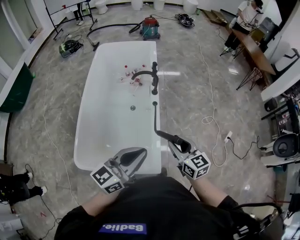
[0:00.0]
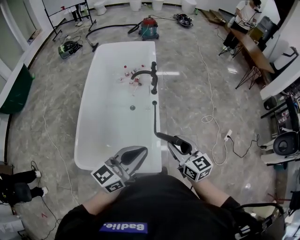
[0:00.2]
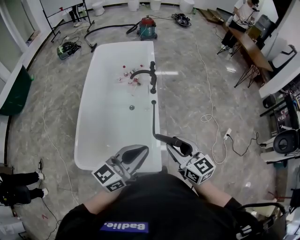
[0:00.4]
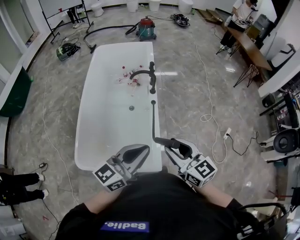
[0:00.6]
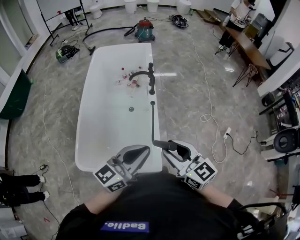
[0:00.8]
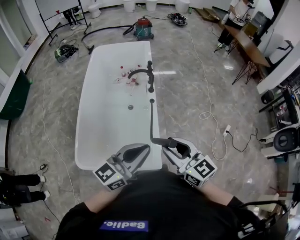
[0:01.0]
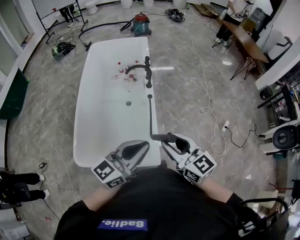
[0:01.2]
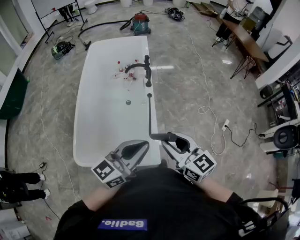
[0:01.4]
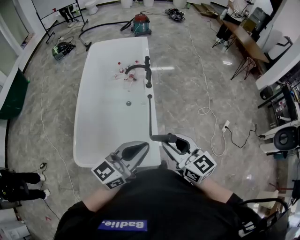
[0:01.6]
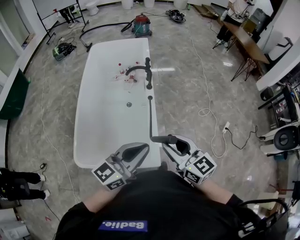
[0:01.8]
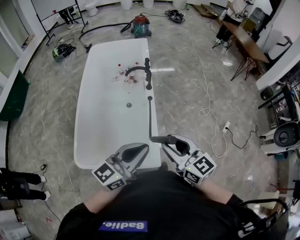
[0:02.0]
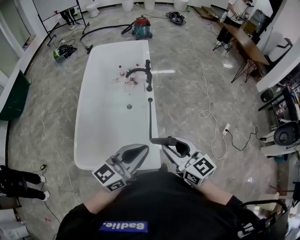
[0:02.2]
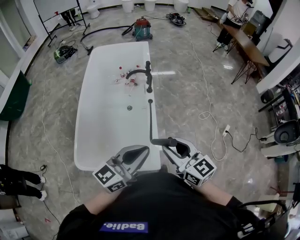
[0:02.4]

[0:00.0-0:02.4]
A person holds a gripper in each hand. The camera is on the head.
0:00.0 to 0:01.2: The right gripper is displaced upward and backward by some 10 cm.
0:01.2 to 0:02.4: Neither gripper changes place.

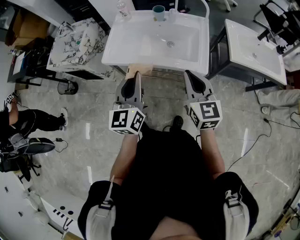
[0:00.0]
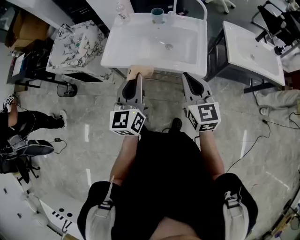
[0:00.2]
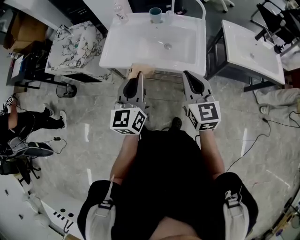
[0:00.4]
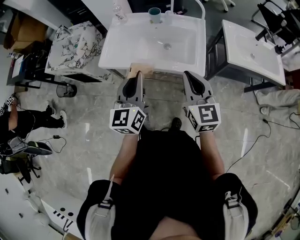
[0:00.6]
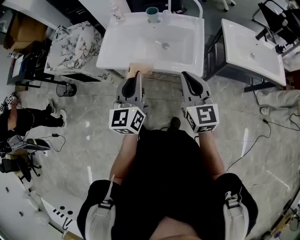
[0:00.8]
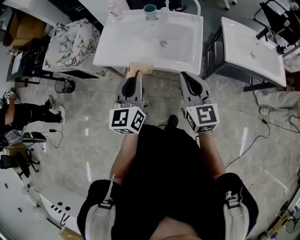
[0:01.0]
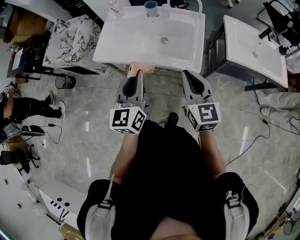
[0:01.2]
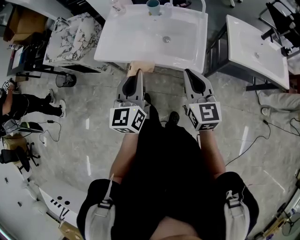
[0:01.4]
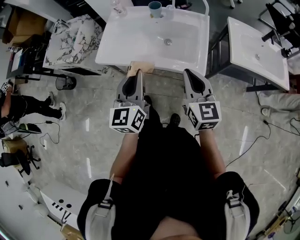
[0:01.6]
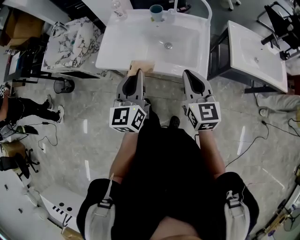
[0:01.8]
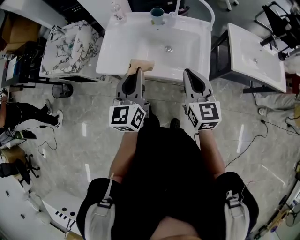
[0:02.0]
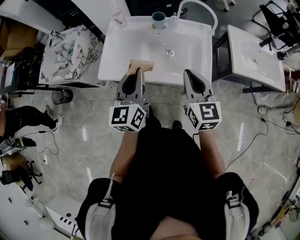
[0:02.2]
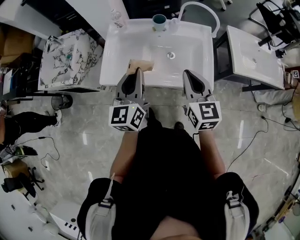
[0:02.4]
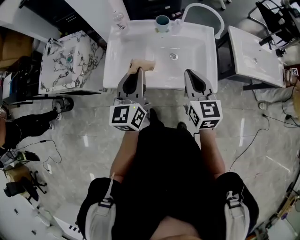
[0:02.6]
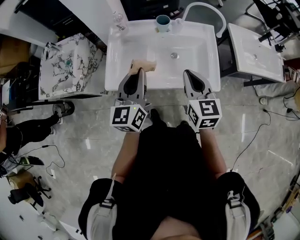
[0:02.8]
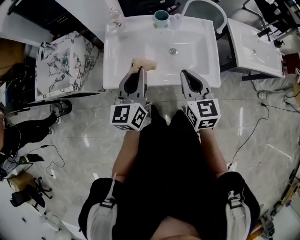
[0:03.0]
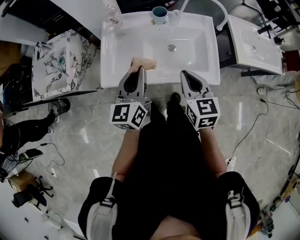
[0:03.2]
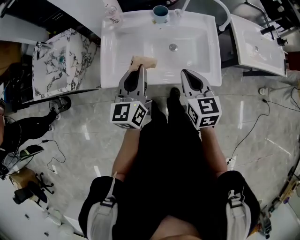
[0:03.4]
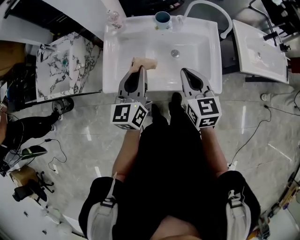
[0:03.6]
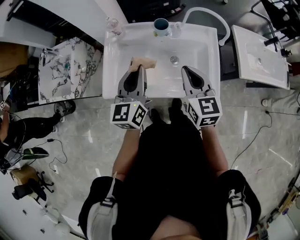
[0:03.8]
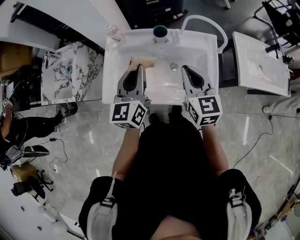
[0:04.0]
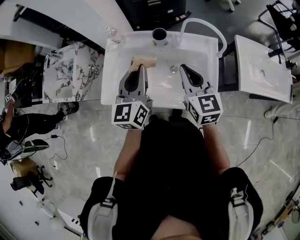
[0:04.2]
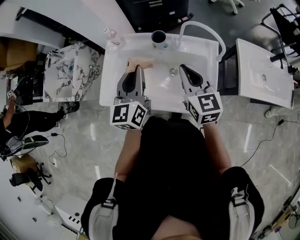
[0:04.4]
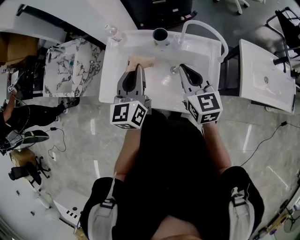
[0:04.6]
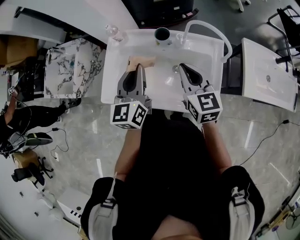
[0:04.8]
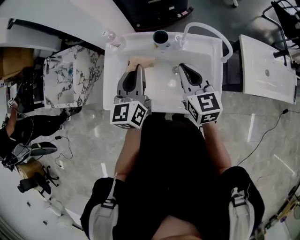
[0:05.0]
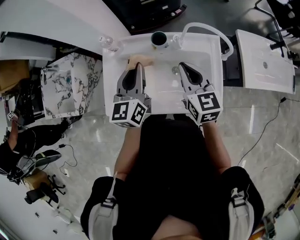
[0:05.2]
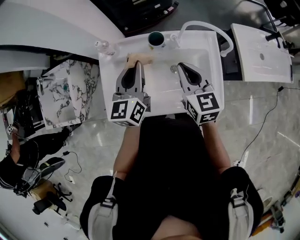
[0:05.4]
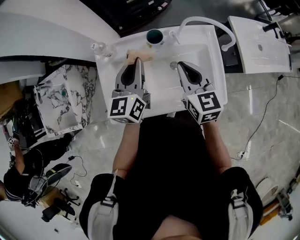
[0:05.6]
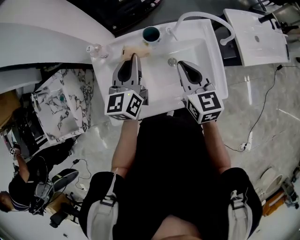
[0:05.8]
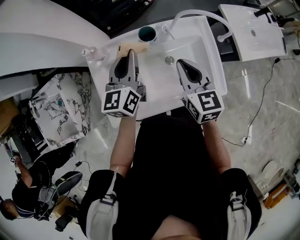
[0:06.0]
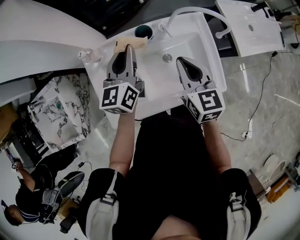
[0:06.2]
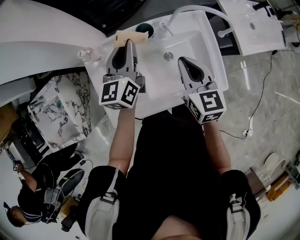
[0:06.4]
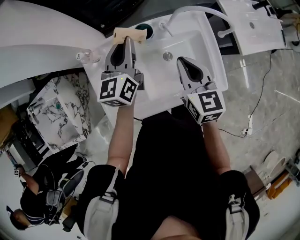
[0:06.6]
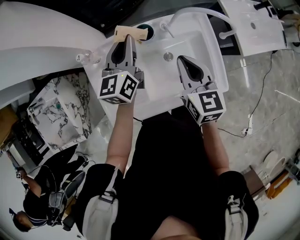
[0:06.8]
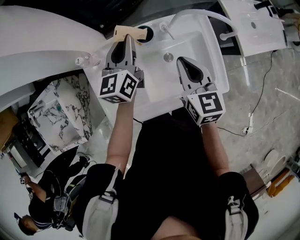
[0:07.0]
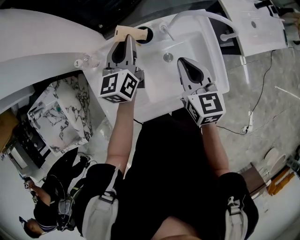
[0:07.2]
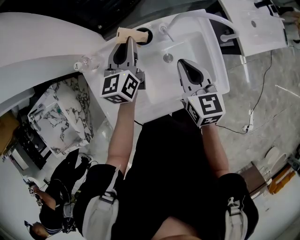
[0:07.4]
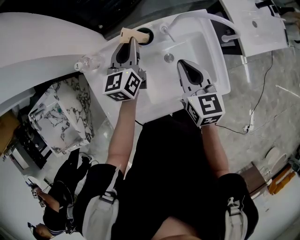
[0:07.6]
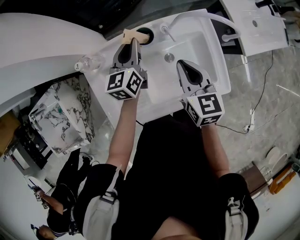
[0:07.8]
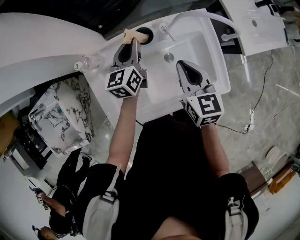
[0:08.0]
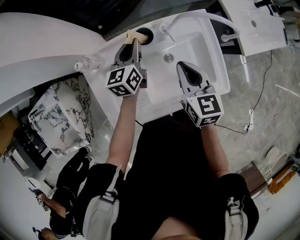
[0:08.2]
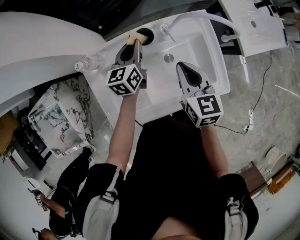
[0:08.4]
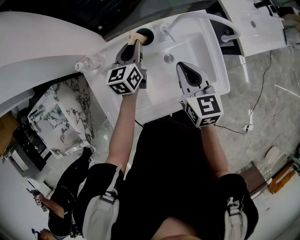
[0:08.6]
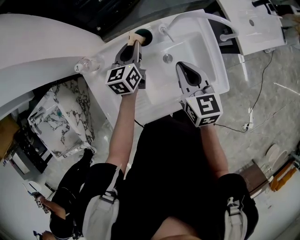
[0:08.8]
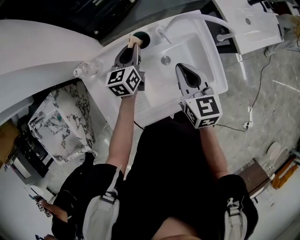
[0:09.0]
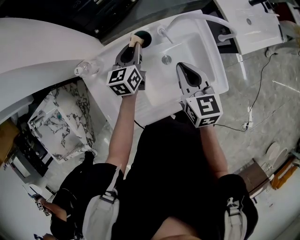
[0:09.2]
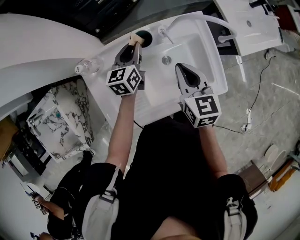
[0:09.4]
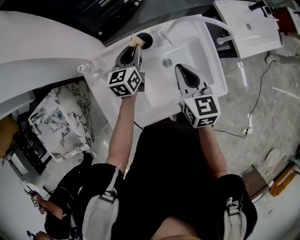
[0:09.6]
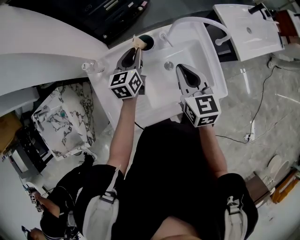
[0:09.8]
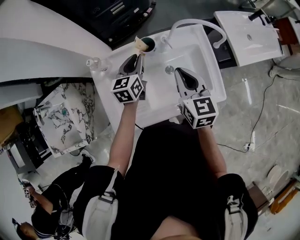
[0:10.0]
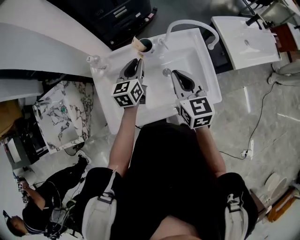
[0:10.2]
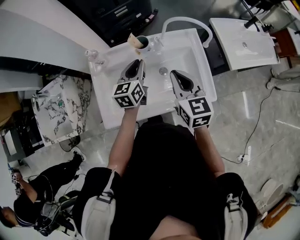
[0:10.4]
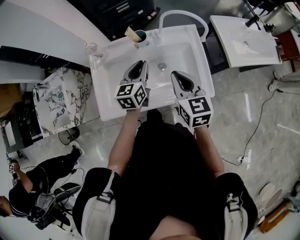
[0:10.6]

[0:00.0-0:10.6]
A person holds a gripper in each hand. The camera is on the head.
0:00.0 to 0:01.6: The right gripper ends up roughly 5 cm from where it was. The left gripper ends up roughly 5 cm from where it was.
0:01.6 to 0:03.0: The left gripper is displaced forward and to the left by about 20 cm. The right gripper is displaced to the left and forward by some 20 cm.
0:03.0 to 0:04.6: Both grippers move forward and to the right, roughly 15 cm.
0:04.6 to 0:06.0: The right gripper moves about 5 cm, and turns by about 30 degrees; the left gripper goes approximately 15 cm forward, and swivels approximately 30 degrees.
0:06.0 to 0:07.6: The left gripper moves forward and downward, some 10 cm.
0:07.6 to 0:09.0: The left gripper heads downward, covering roughly 5 cm.
0:09.0 to 0:10.6: The right gripper travels backward by about 10 cm; the left gripper travels backward and upward by roughly 15 cm.

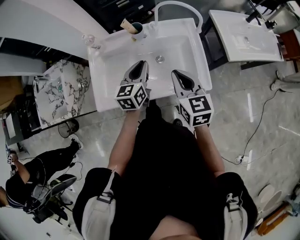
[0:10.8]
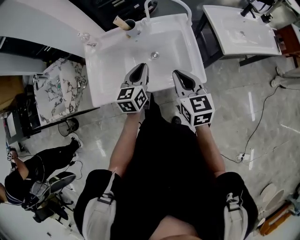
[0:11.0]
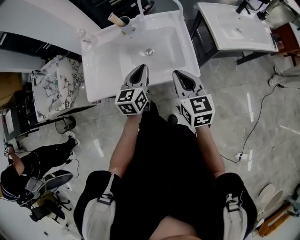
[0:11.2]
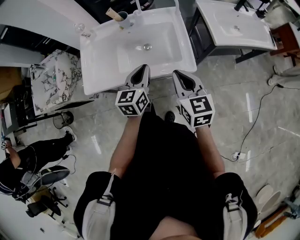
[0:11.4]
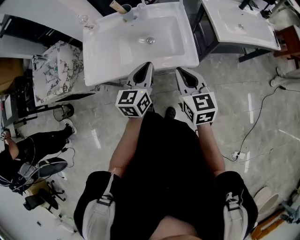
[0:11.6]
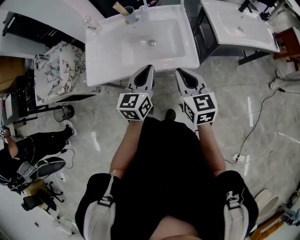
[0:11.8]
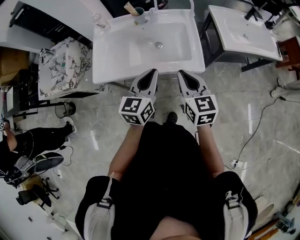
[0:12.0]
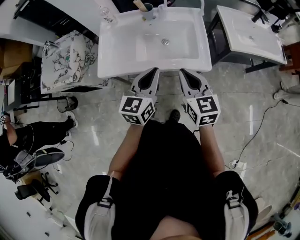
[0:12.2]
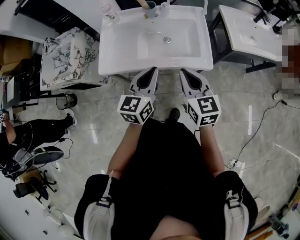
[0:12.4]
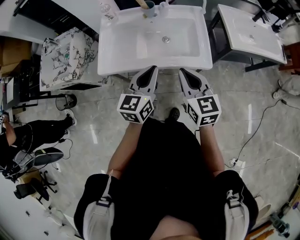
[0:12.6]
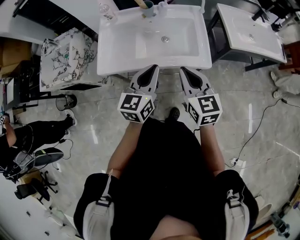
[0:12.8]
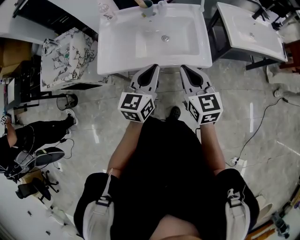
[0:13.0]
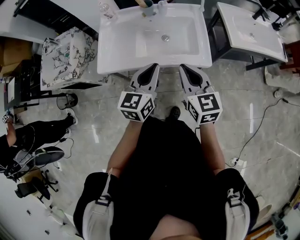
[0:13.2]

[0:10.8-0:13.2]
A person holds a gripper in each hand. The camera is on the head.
0:10.8 to 0:12.0: The right gripper moves backward and to the right, some 15 cm, while the left gripper shifts roughly 20 cm backward.
0:12.0 to 0:13.2: The grippers make only small movements.

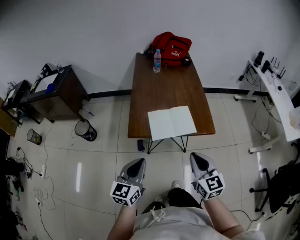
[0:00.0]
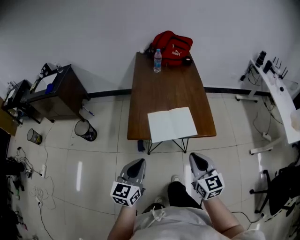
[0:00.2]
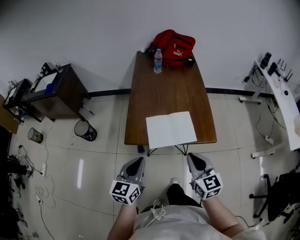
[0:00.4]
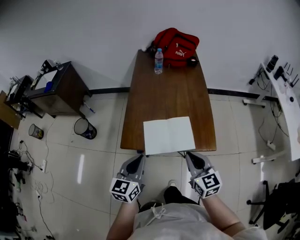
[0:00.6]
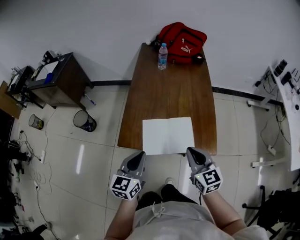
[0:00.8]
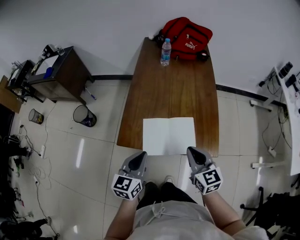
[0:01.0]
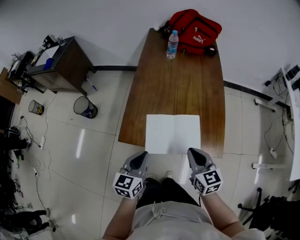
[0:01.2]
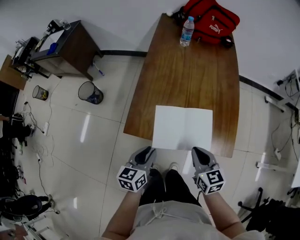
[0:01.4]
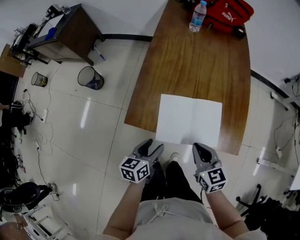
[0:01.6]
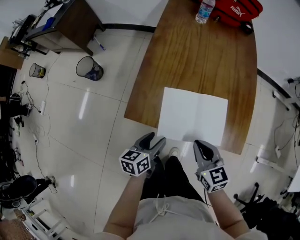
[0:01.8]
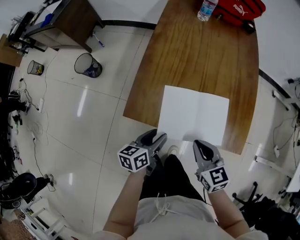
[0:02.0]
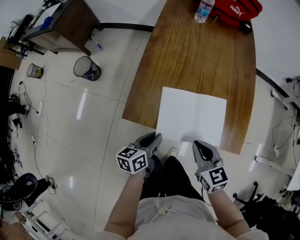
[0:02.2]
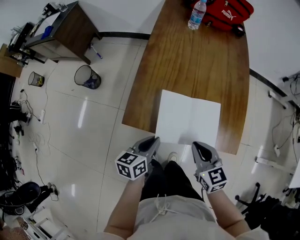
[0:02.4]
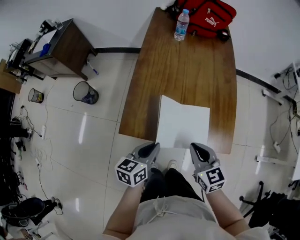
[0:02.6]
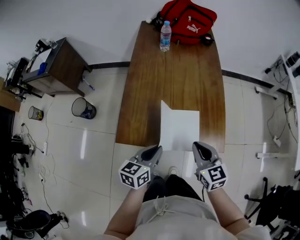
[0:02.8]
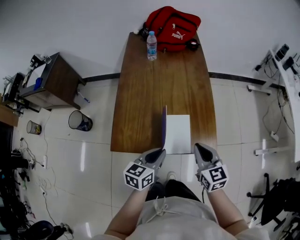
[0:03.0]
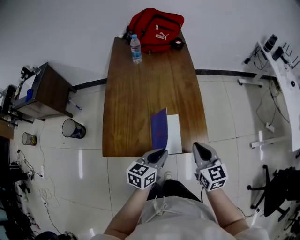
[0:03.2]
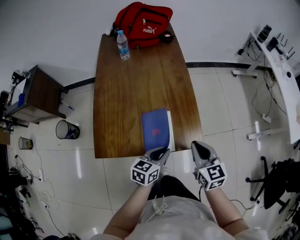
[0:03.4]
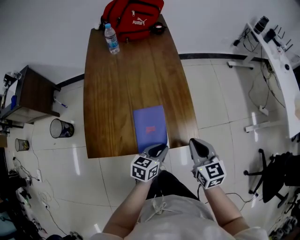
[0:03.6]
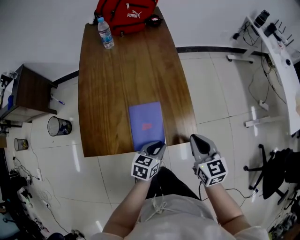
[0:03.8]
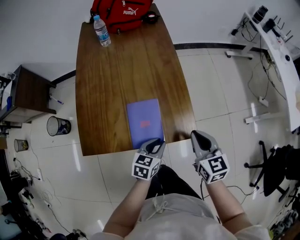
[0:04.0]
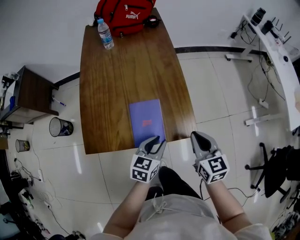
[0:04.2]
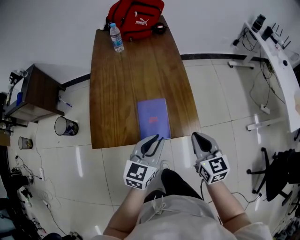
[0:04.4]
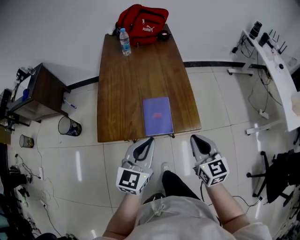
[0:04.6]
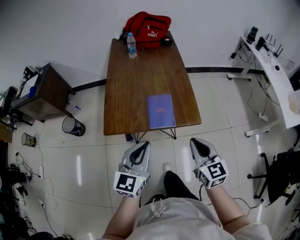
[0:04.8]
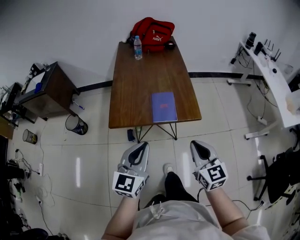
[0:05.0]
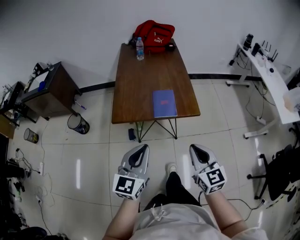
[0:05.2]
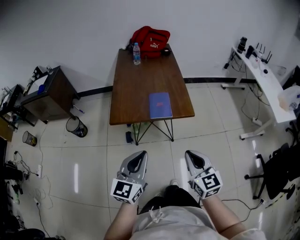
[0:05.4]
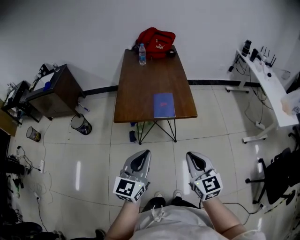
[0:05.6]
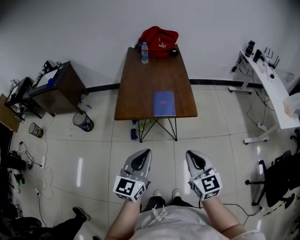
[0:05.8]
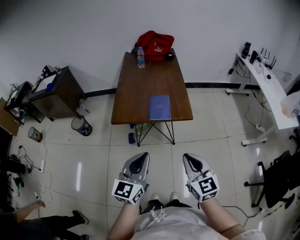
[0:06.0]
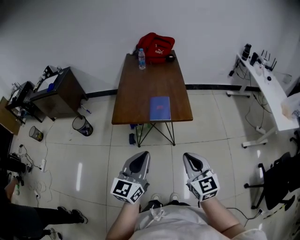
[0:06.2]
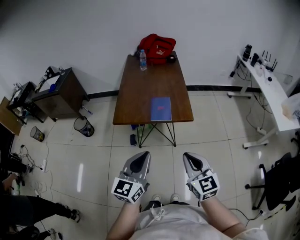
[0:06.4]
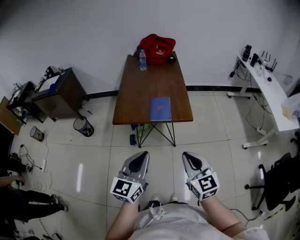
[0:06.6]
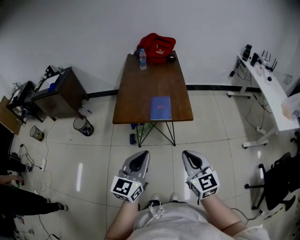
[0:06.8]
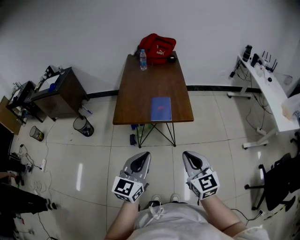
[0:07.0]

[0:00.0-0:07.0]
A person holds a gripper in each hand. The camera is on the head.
0:00.0 to 0:01.4: Both grippers travel together forward and downward, approximately 25 cm. The right gripper rotates some 20 degrees. The left gripper changes its angle by about 30 degrees.
0:01.4 to 0:02.8: The left gripper moves to the right, about 5 cm, travels downward and back again, roughly 10 cm each way, and opens and closes again. Meanwhile the right gripper ends up approximately 5 cm from where it was.
0:02.8 to 0:04.2: Both grippers travel together to the right, approximately 15 cm. The left gripper turns by approximately 20 degrees.
0:04.2 to 0:05.6: The left gripper moves backward and upward, about 40 cm, swivels about 30 degrees, and closes up. The right gripper goes about 35 cm backward.
0:05.6 to 0:07.0: The grippers make only small movements.

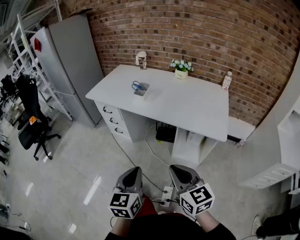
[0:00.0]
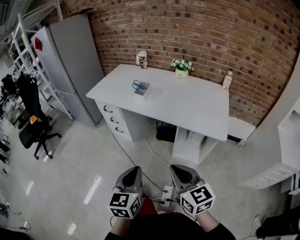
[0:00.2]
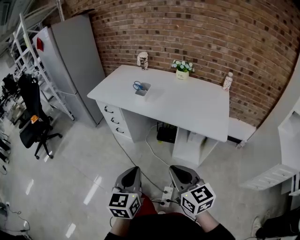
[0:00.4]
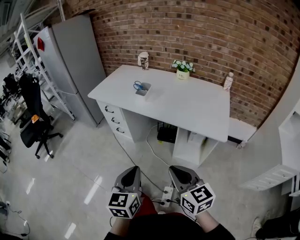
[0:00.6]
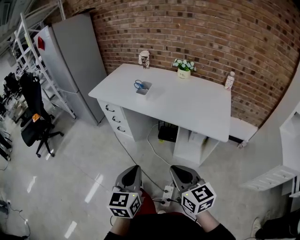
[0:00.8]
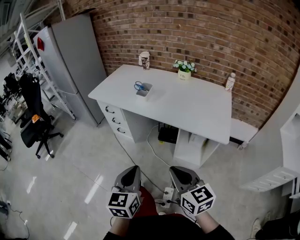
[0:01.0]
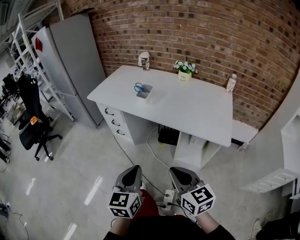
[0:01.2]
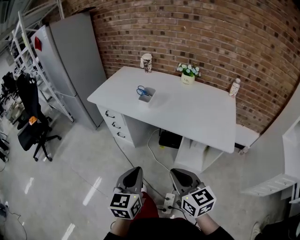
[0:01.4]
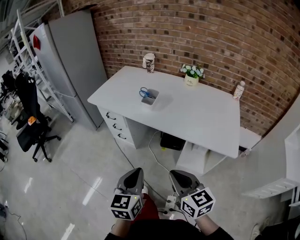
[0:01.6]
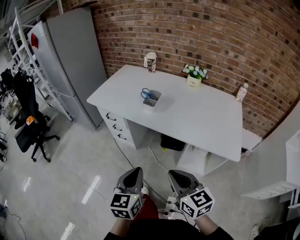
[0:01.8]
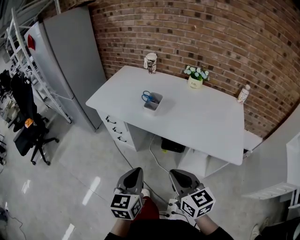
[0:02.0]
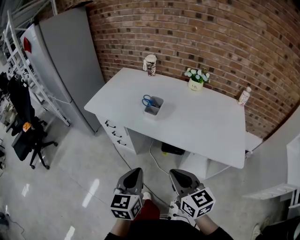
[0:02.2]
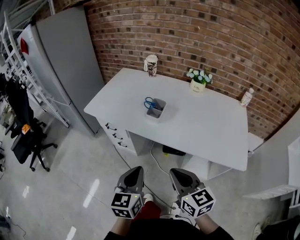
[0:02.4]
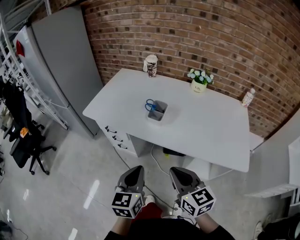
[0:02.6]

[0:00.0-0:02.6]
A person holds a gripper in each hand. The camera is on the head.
0:00.0 to 0:01.2: The grippers make only small movements.
0:01.2 to 0:02.6: The grippers both shift forward by about 25 cm.
